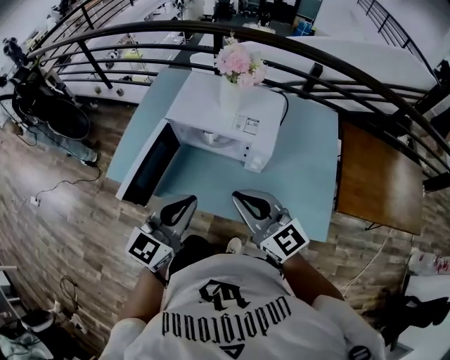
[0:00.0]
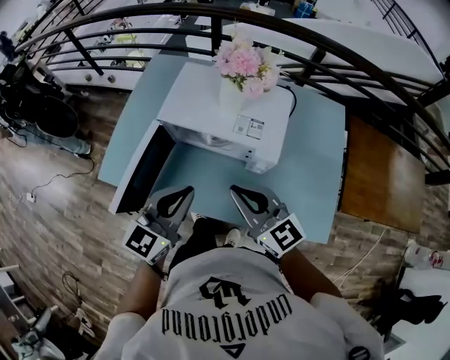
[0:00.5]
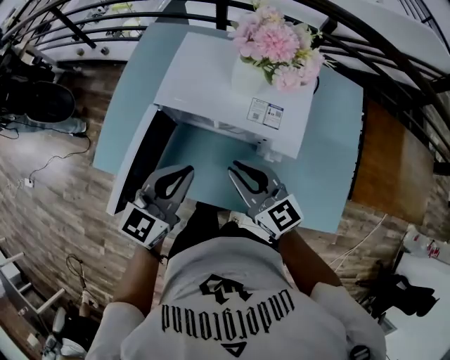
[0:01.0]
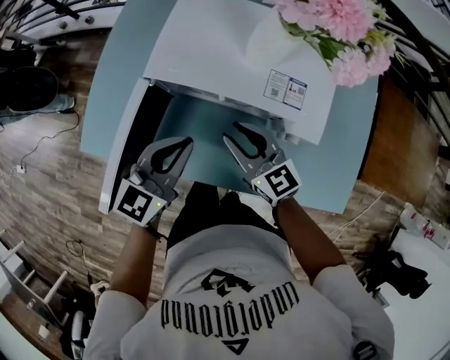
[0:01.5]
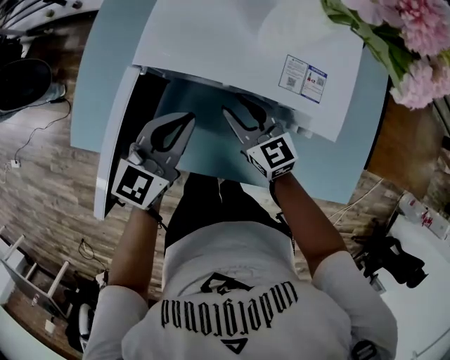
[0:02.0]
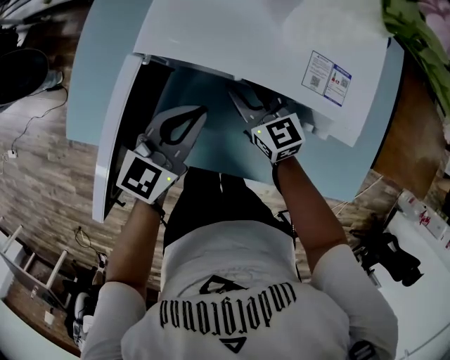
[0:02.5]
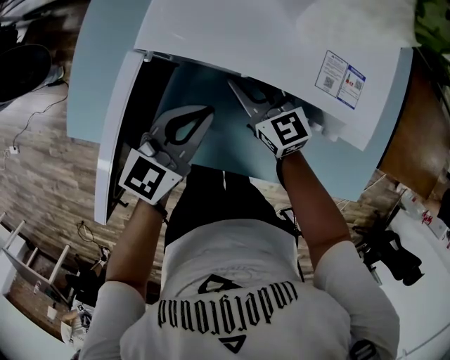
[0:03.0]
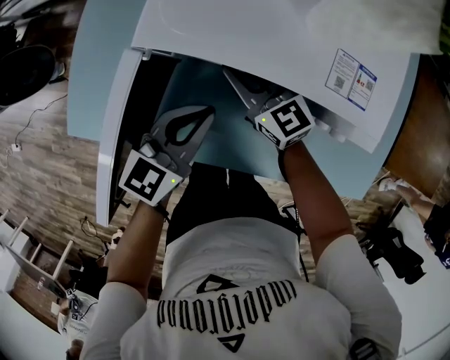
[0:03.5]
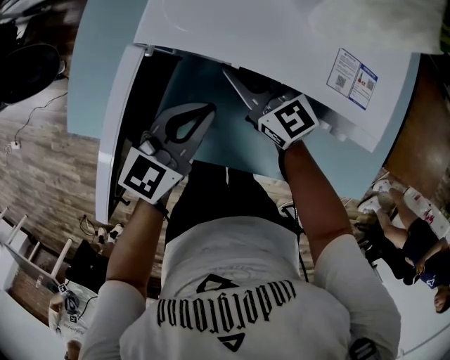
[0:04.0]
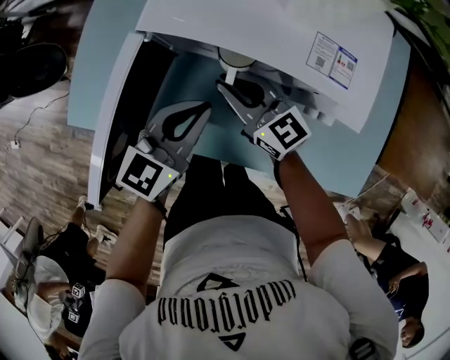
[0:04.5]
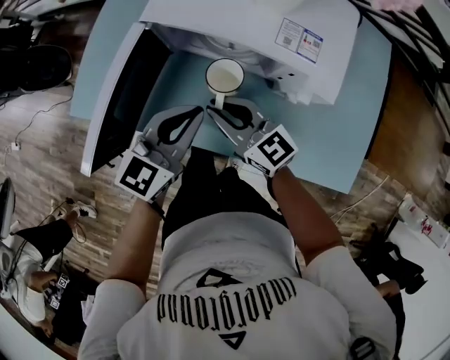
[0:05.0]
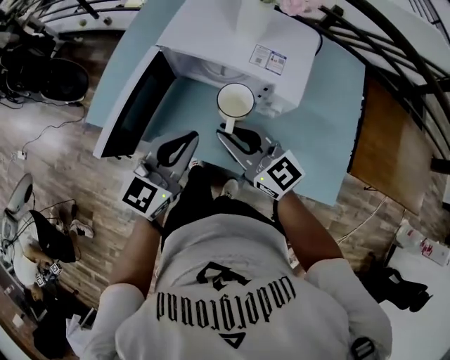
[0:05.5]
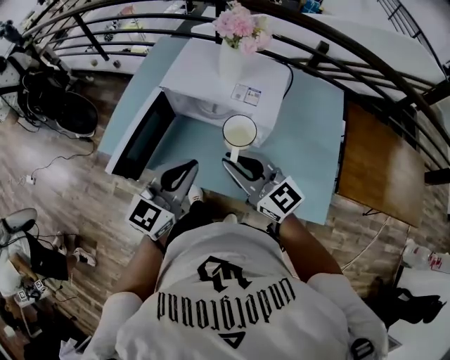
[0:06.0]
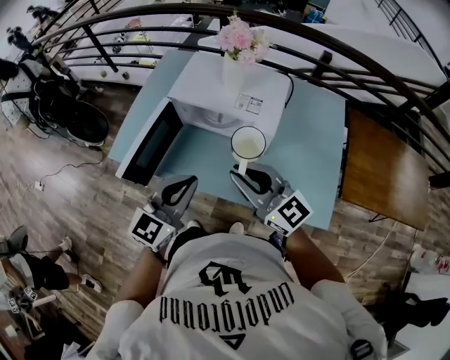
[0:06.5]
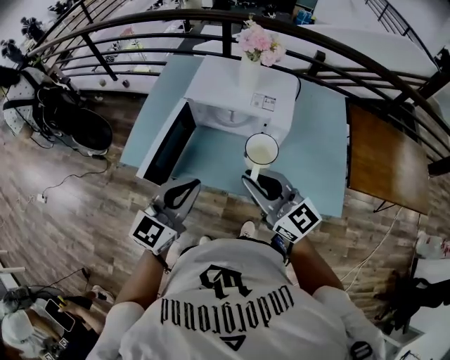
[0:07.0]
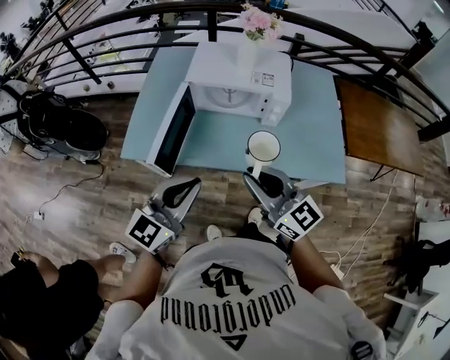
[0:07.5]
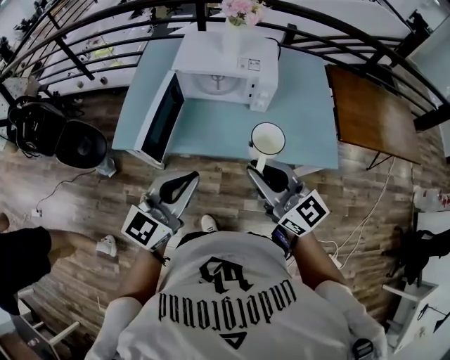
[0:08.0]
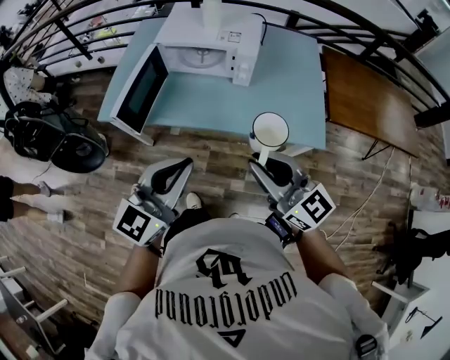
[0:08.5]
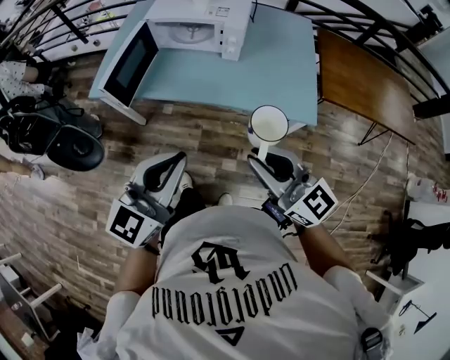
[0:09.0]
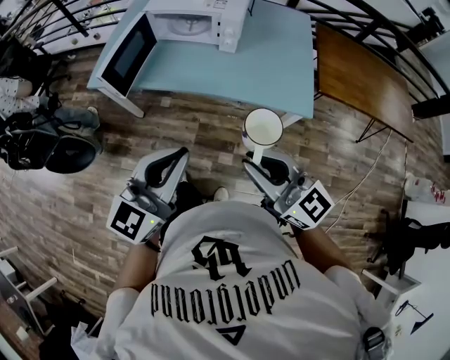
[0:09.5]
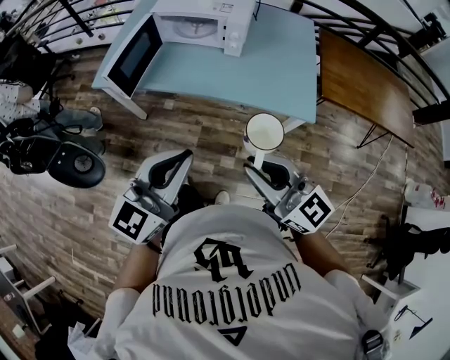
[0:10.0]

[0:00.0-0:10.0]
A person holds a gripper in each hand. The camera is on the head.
0:00.0 to 0:02.0: The left gripper travels forward and downward by about 30 cm. The right gripper heads downward and forward, covering approximately 40 cm, rotates some 20 degrees, and opens its fingers.
0:02.0 to 0:04.0: The left gripper travels downward by approximately 5 cm. Meanwhile the right gripper moves to the left, roughly 5 cm.
0:04.0 to 0:06.0: The left gripper shifts about 30 cm upward and backward, and swivels some 20 degrees. The right gripper goes some 40 cm backward and upward.
0:06.0 to 0:08.0: The left gripper shifts some 20 cm backward and to the left. Meanwhile the right gripper heads backward, covering some 20 cm.
0:08.0 to 0:10.0: The grippers both shift backward and to the right by approximately 25 cm.

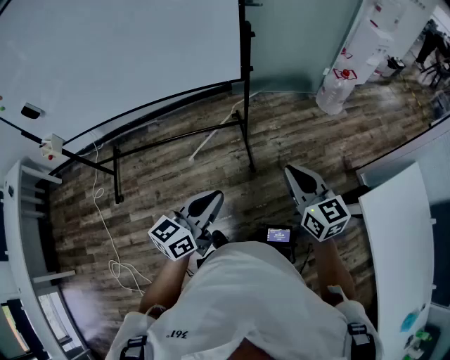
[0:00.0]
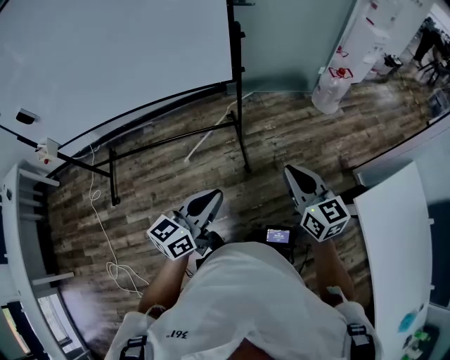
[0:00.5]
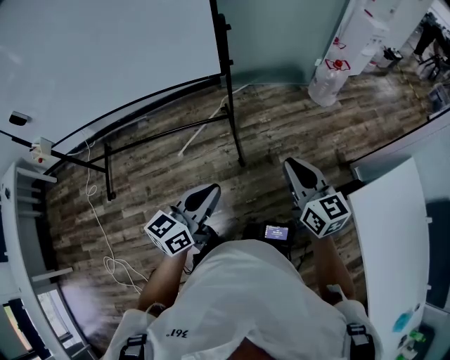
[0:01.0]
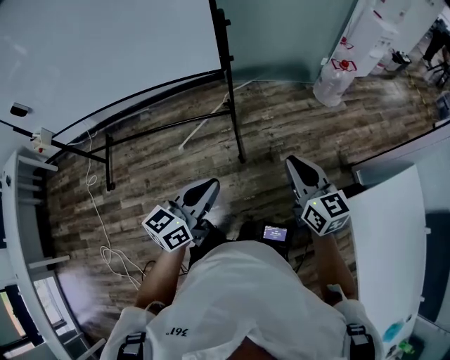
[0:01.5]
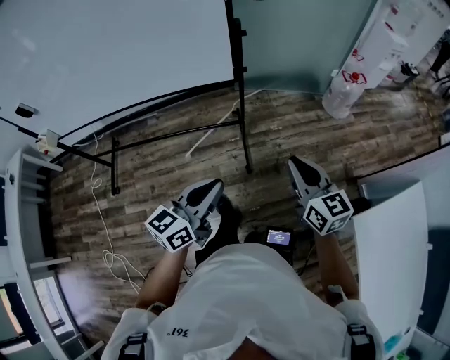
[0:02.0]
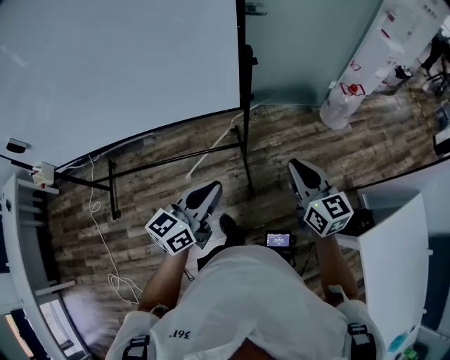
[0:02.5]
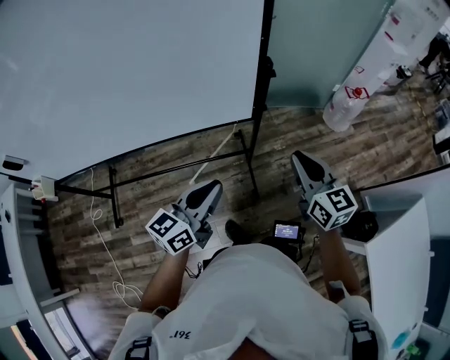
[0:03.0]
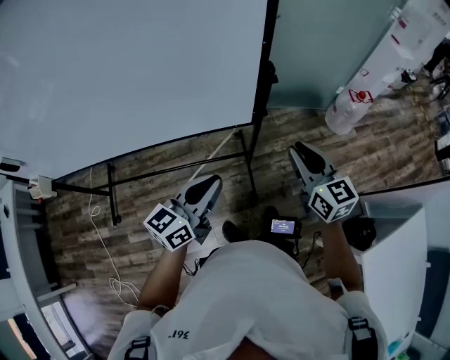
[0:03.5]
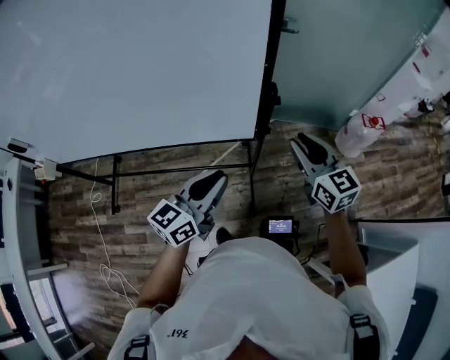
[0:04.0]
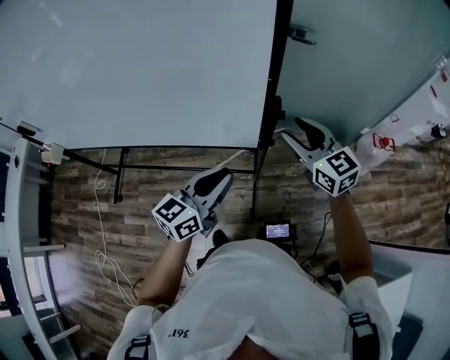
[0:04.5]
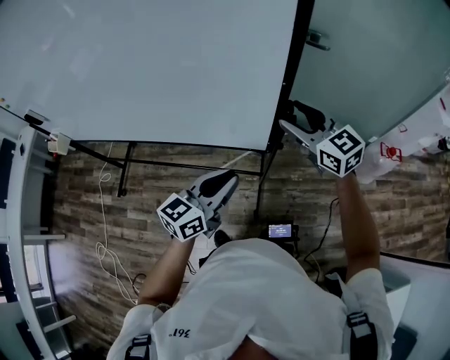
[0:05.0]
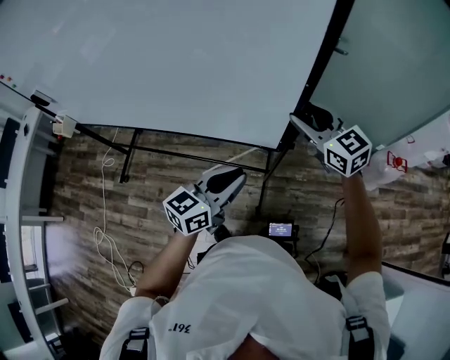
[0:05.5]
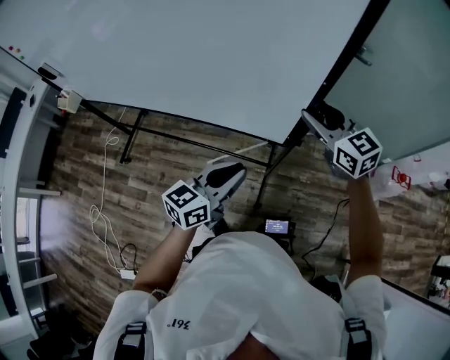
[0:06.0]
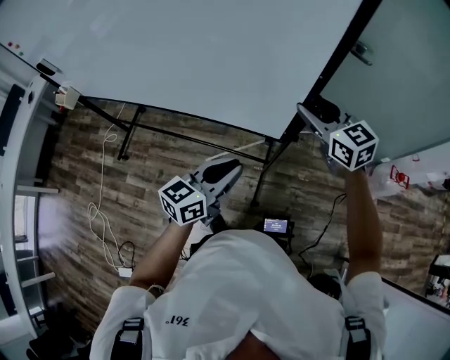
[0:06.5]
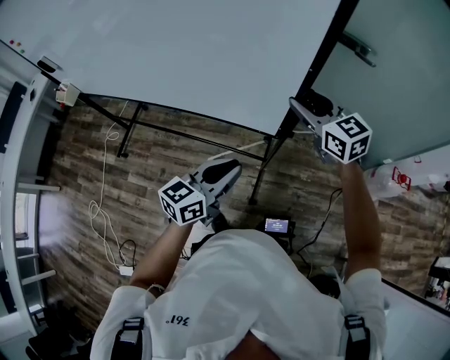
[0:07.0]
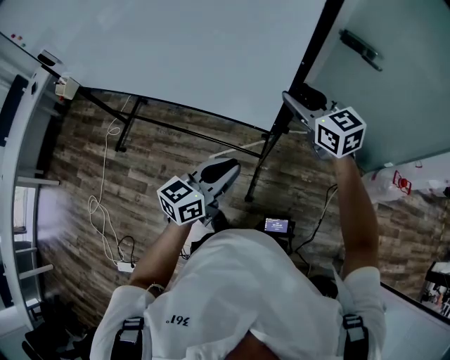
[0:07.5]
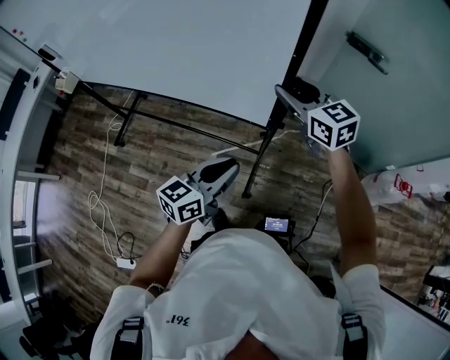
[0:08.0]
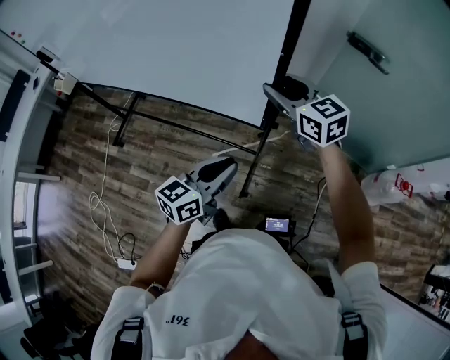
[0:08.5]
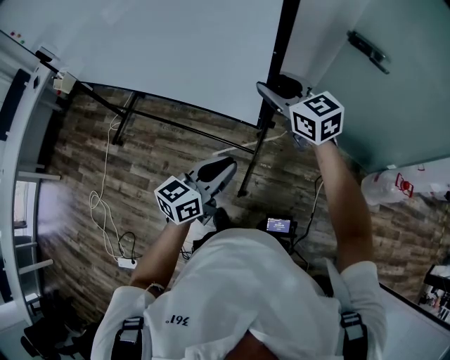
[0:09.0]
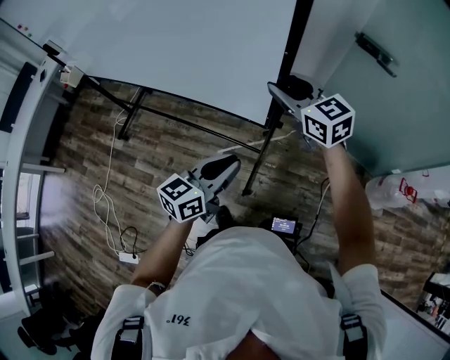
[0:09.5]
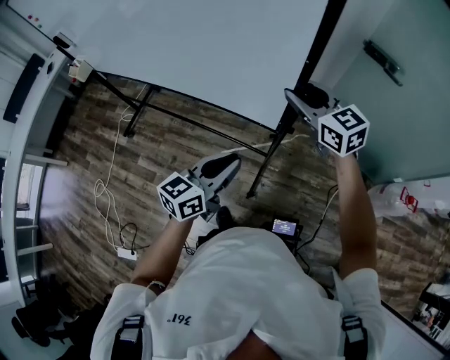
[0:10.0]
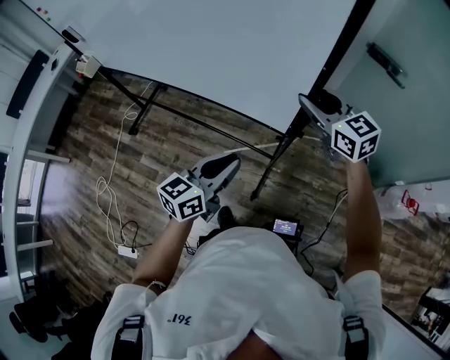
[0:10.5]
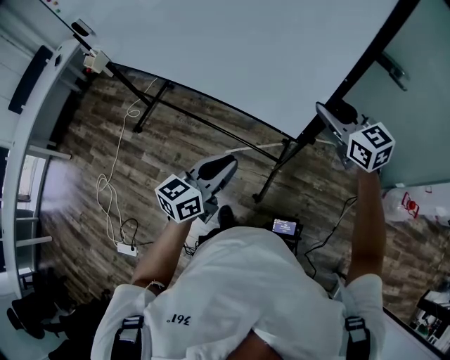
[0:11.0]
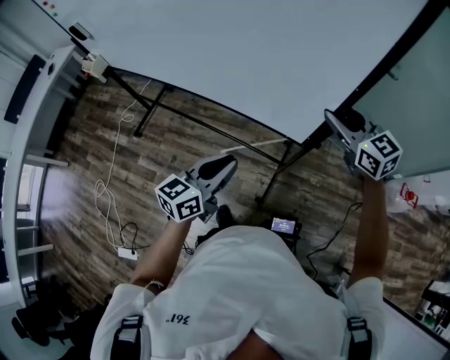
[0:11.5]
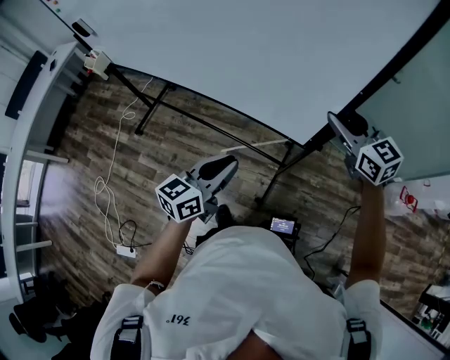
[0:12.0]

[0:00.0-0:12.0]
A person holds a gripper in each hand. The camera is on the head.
0:00.0 to 0:02.0: Both grippers travel together forward and to the right, roughly 10 cm.
0:02.0 to 0:04.0: Both grippers move forward, roughly 30 cm.
0:04.0 to 0:06.0: The right gripper is displaced forward and to the left by roughly 15 cm, and rotates approximately 30 degrees. Meanwhile the left gripper changes place by approximately 5 cm.
0:06.0 to 0:08.0: The left gripper travels to the left by about 5 cm, while the right gripper is displaced to the left and forward by about 15 cm.
0:08.0 to 0:10.0: There are only small adjustments of the grippers.
0:10.0 to 0:12.0: The right gripper moves to the right and backward, approximately 10 cm.

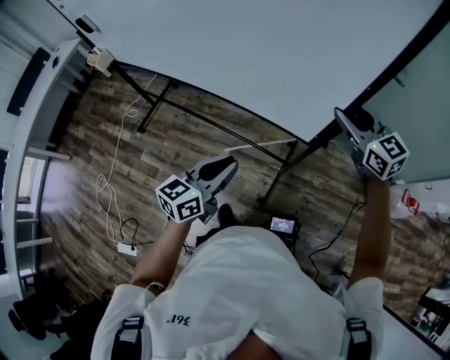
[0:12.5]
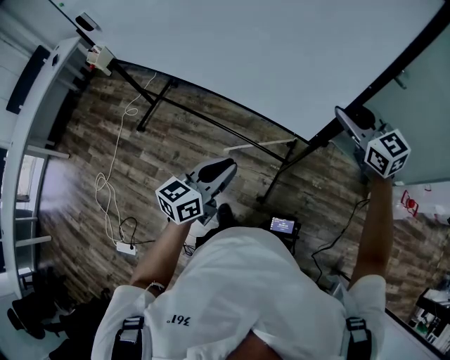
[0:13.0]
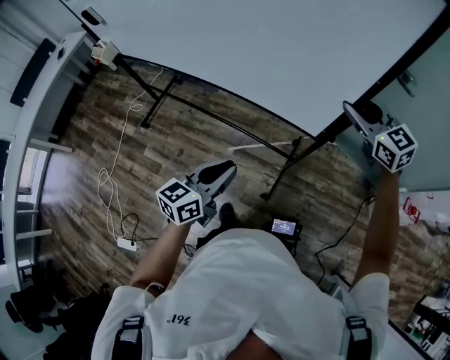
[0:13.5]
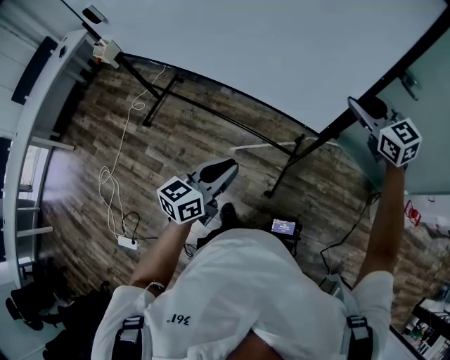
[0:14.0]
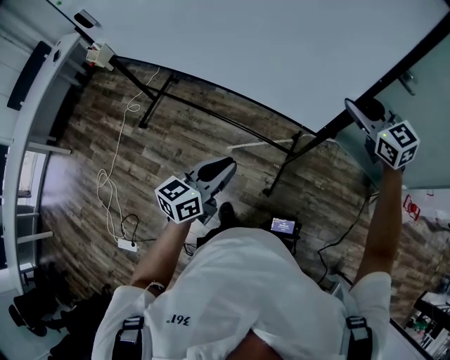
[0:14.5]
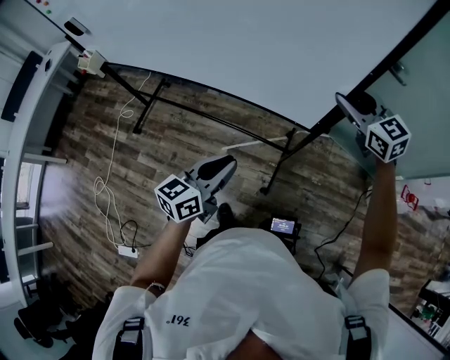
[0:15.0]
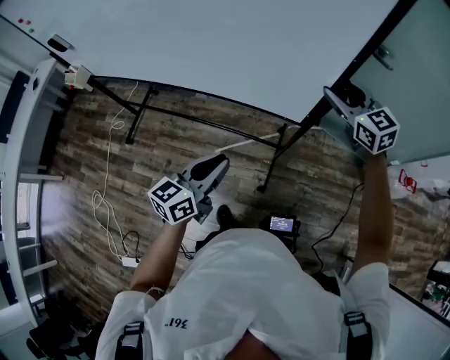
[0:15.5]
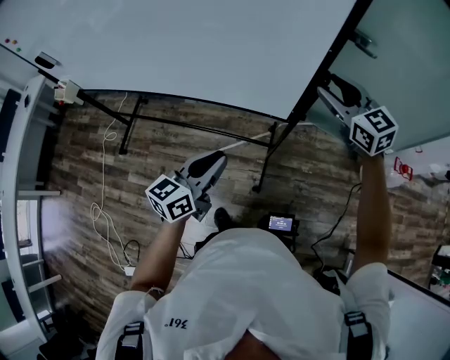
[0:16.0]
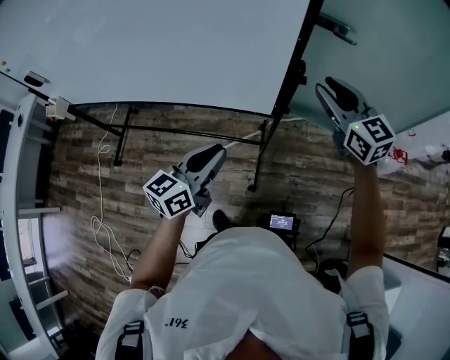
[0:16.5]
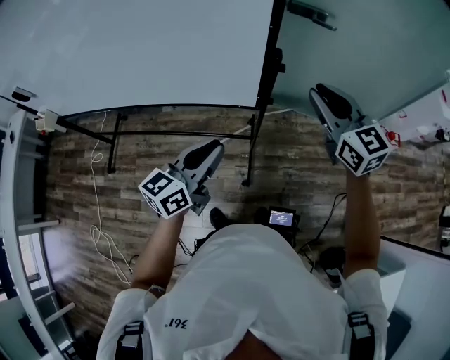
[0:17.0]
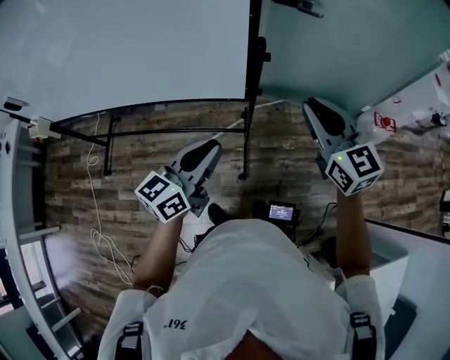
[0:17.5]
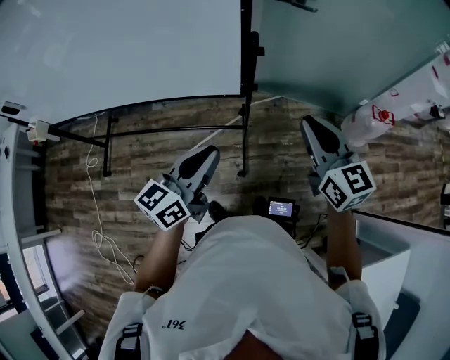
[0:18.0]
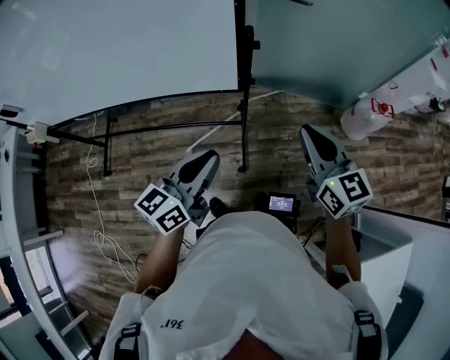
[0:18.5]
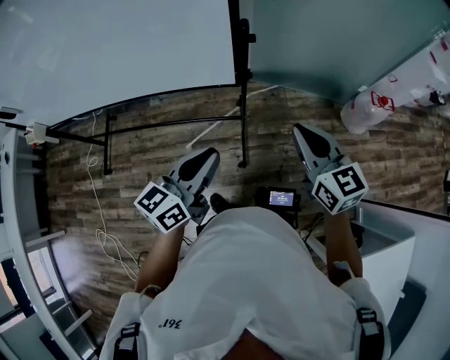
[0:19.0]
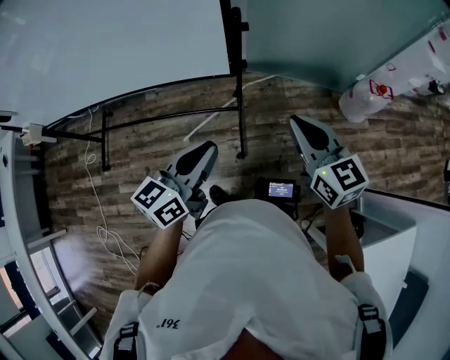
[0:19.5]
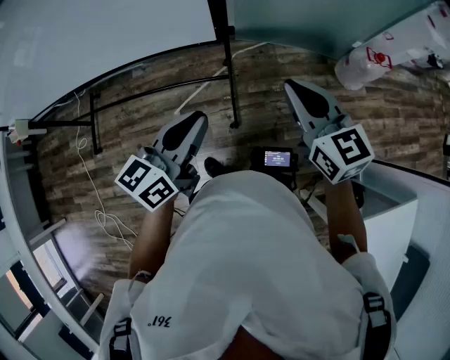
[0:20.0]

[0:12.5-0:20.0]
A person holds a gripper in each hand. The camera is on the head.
0:12.5 to 0:14.5: The right gripper goes roughly 5 cm forward.
0:14.5 to 0:16.5: The left gripper is displaced to the right by roughly 5 cm, while the right gripper is displaced to the right and backward by about 10 cm, and turns by approximately 20 degrees.
0:16.5 to 0:18.0: The right gripper shifts some 15 cm backward and to the right, and closes its fingers; the left gripper heads to the right, covering about 5 cm.
0:18.0 to 0:20.0: The right gripper ends up some 5 cm from where it was.
